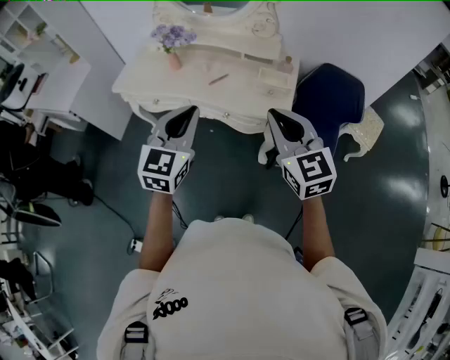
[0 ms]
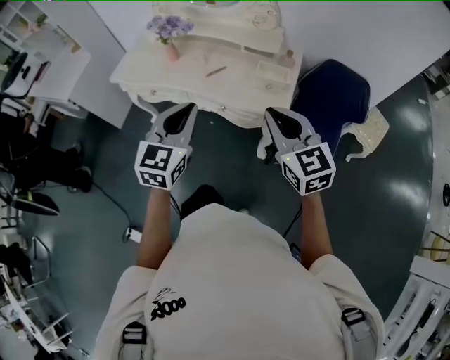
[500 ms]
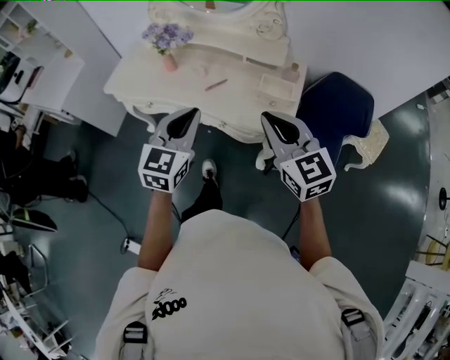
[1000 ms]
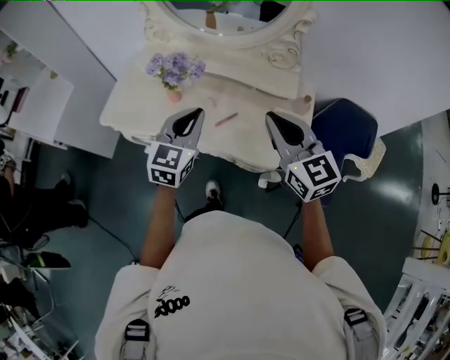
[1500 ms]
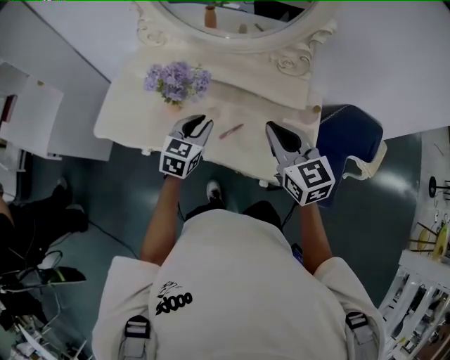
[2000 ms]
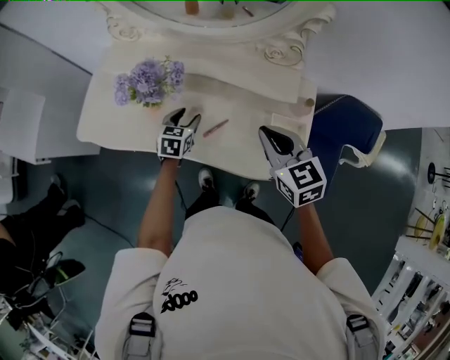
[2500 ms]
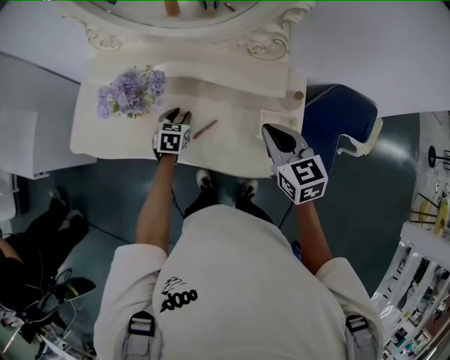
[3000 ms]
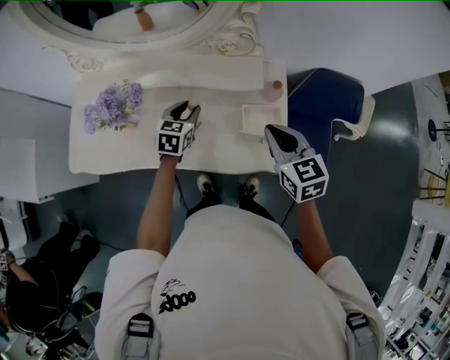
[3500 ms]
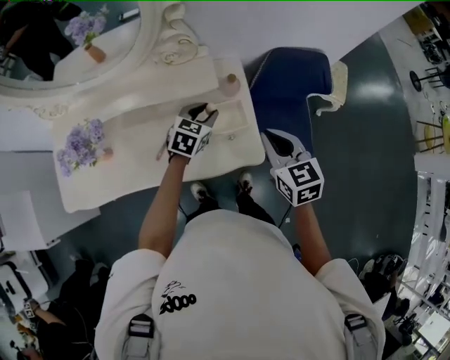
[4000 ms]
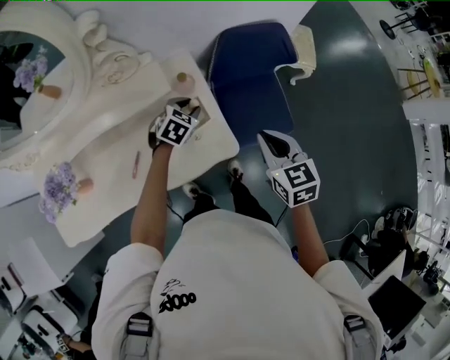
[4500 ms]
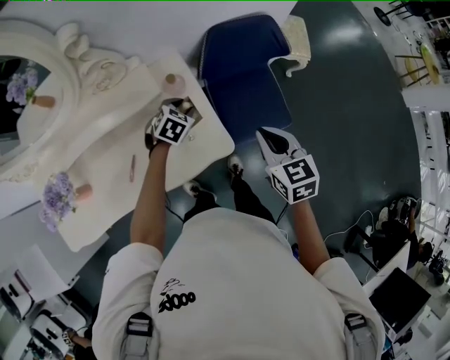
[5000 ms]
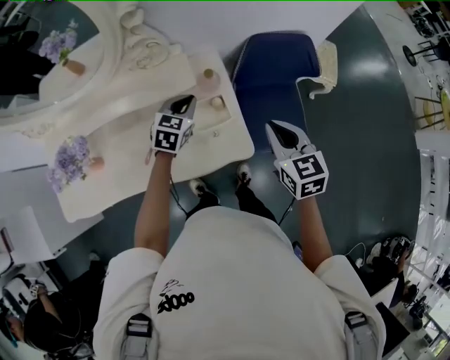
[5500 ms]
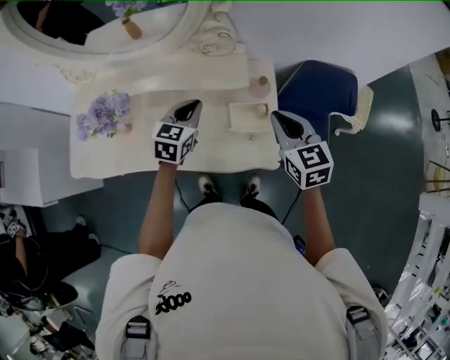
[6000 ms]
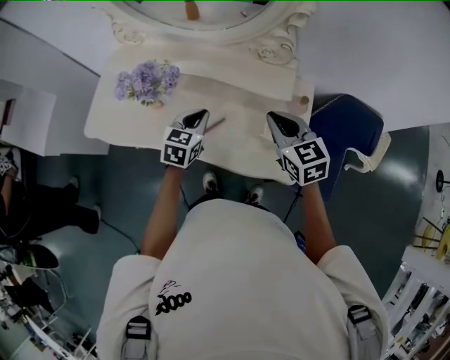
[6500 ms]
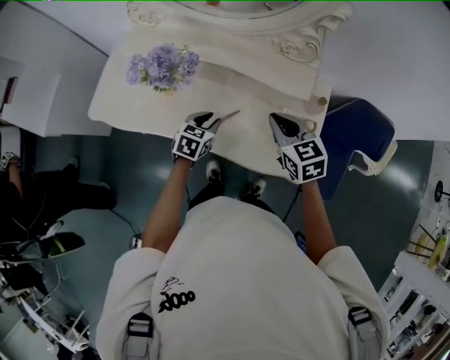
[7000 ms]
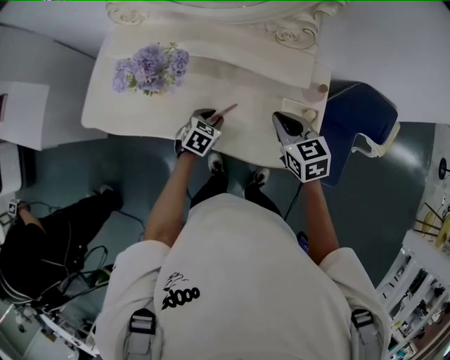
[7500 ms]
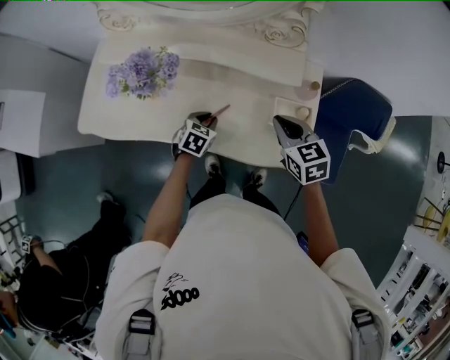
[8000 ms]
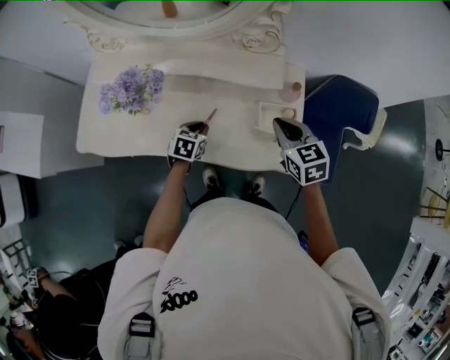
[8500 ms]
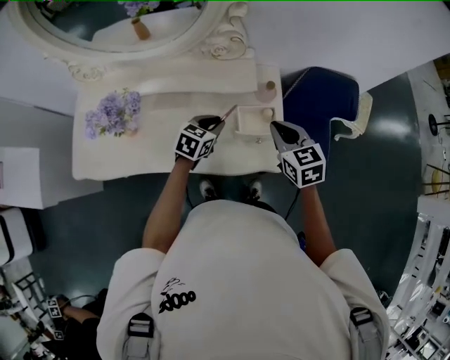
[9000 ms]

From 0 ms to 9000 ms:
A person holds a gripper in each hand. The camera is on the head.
From 0 ms to 2000 ms: The right gripper heads forward, covering approximately 30 cm. The left gripper goes approximately 40 cm forward and downward, rotates about 20 degrees, and opens its fingers.
From 2000 ms to 4500 ms: The right gripper shifts by about 35 cm, and changes its angle by approximately 40 degrees. The left gripper swings up and down, some 15 cm each way, with 2 reversals, swivels approximately 50 degrees, and opens, then closes again.
From 4500 ms to 7000 ms: The right gripper ends up about 30 cm from where it was, and changes its angle by roughly 40 degrees, while the left gripper reaches approximately 10 cm upward, then returns, rolls counterclockwise, seen from behind, by some 40 degrees, and closes, then opens again.
From 7000 ms to 9000 ms: Both grippers move to the right, approximately 15 cm. The left gripper changes its angle by some 20 degrees. The right gripper rotates some 20 degrees.

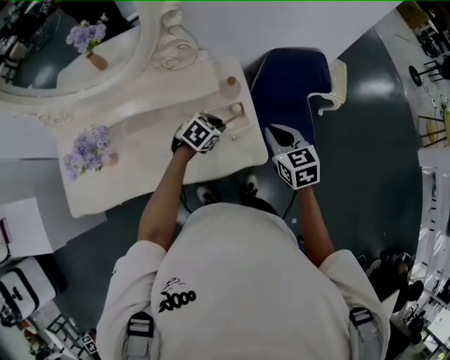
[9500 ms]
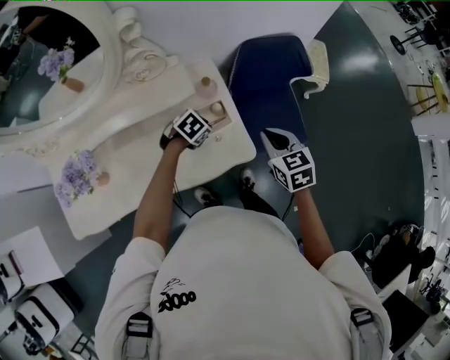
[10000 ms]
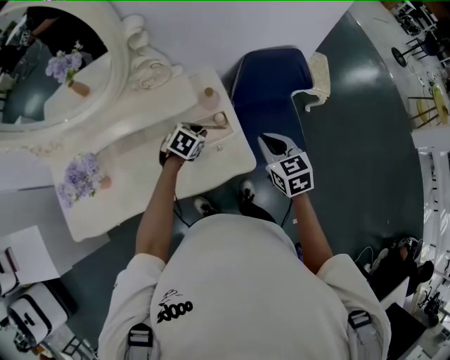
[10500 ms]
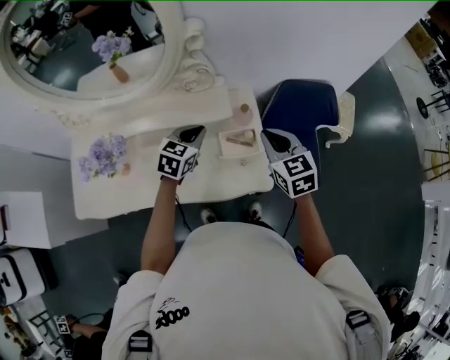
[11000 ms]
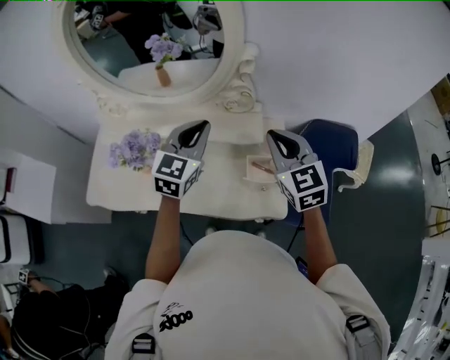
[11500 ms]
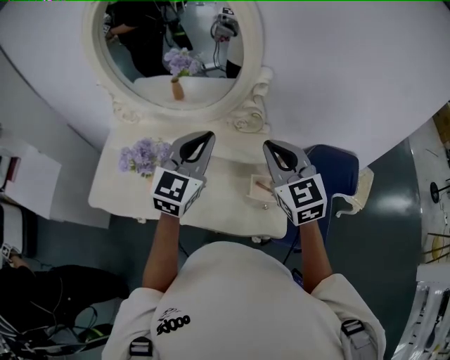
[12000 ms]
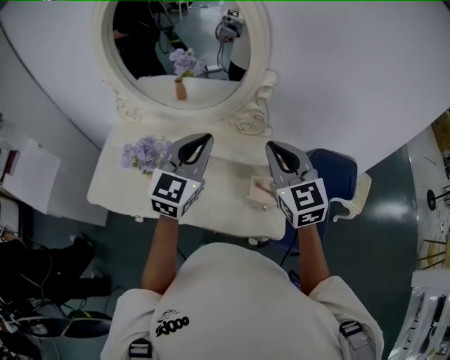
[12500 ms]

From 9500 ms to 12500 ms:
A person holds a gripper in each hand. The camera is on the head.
From 9500 ms to 11000 ms: The right gripper shifts by about 10 cm, while the left gripper moves upward, approximately 10 cm, and changes its angle by approximately 30 degrees.
From 11000 ms to 12500 ms: The two grippers go some 25 cm upward and to the left. The left gripper tilts its fingers some 30 degrees upward, while the right gripper swivels about 30 degrees.

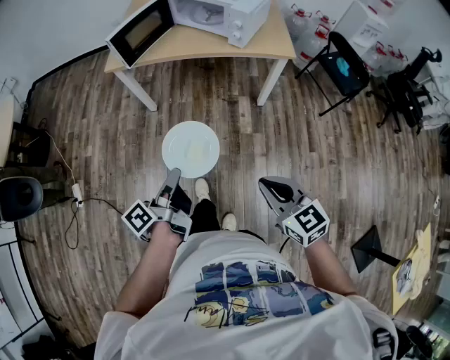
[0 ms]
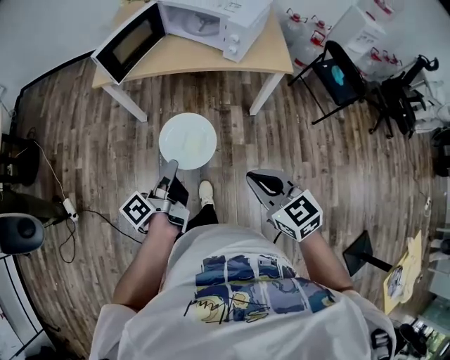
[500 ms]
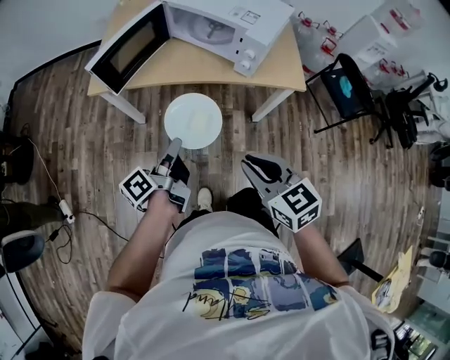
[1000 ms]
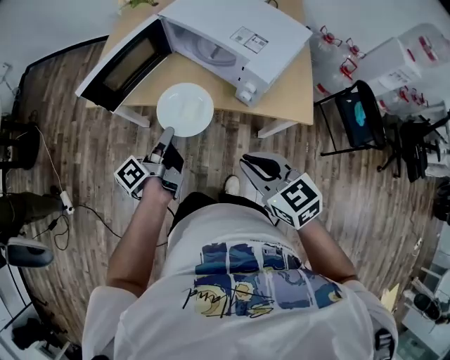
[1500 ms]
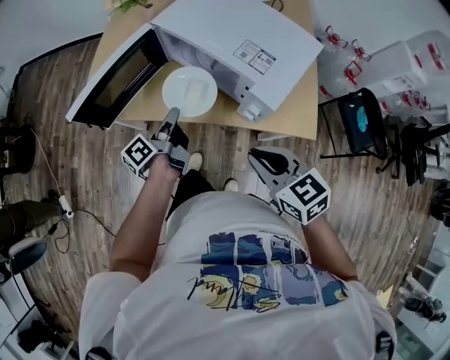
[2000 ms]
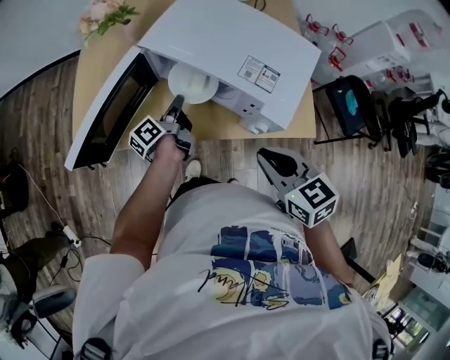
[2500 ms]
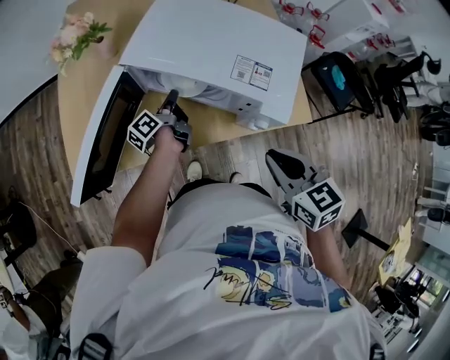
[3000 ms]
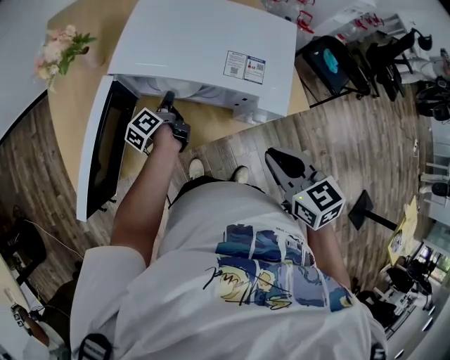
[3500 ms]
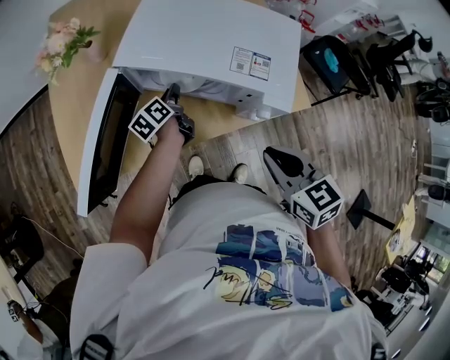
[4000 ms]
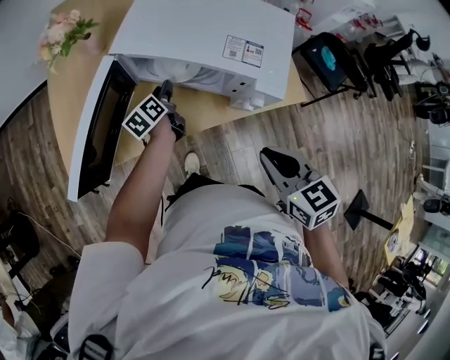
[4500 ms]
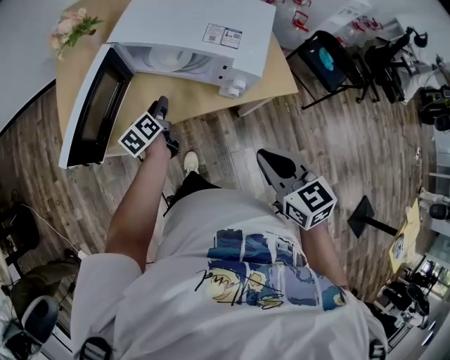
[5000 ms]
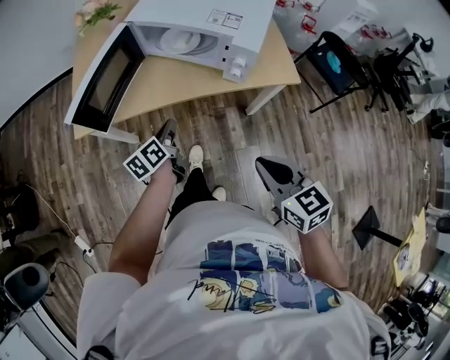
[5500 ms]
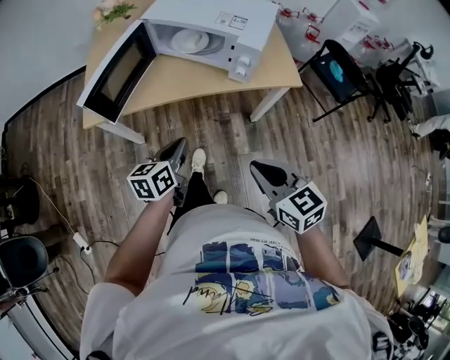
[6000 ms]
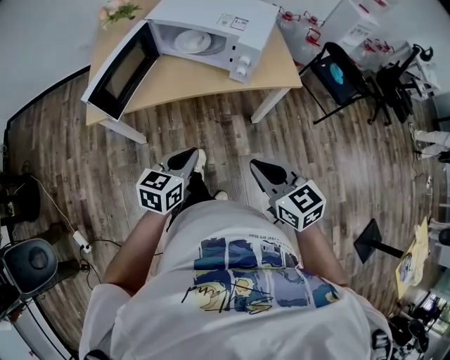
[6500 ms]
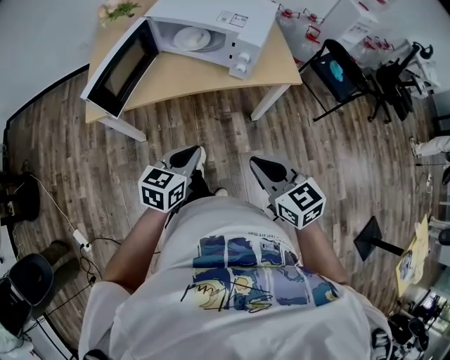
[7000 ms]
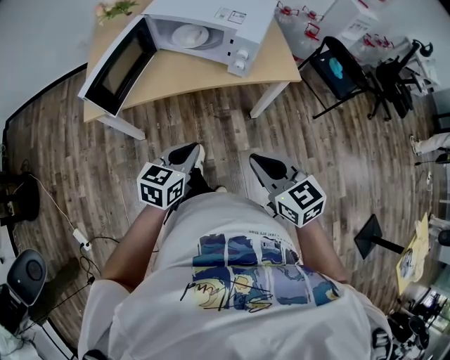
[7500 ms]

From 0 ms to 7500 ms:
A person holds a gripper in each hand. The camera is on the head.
From 0 ms to 2000 ms: Both grippers are carried forward, about 50 cm.
From 2000 ms to 4000 ms: The left gripper changes place by roughly 20 cm, and rotates approximately 30 degrees. Meanwhile the right gripper shifts by approximately 5 cm, and changes its angle by approximately 30 degrees.
From 4000 ms to 5500 ms: Both grippers move backward, roughly 25 cm. The left gripper opens, then closes again.
From 5500 ms to 7500 ms: The right gripper shifts about 5 cm backward; the left gripper heads backward, upward and to the right, covering roughly 20 cm, and rotates around the line of its fingers by roughly 40 degrees, clockwise from behind.

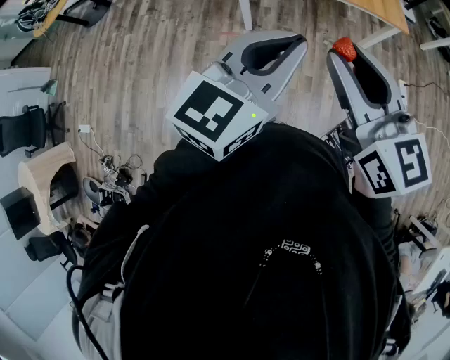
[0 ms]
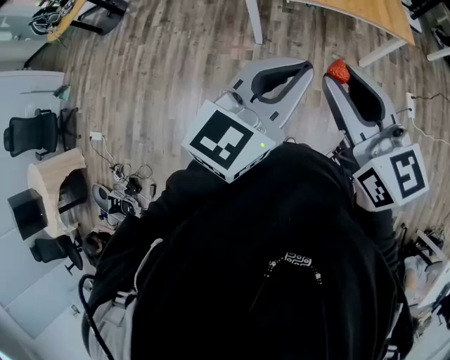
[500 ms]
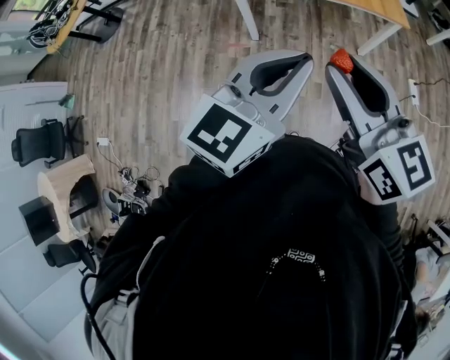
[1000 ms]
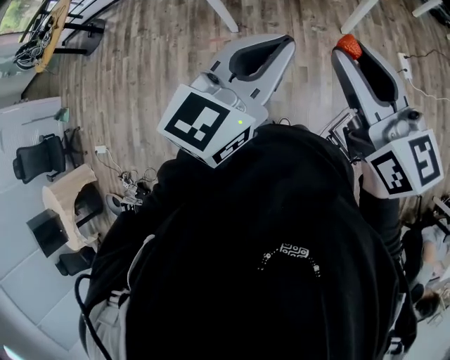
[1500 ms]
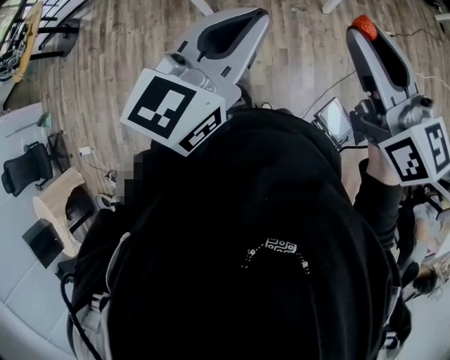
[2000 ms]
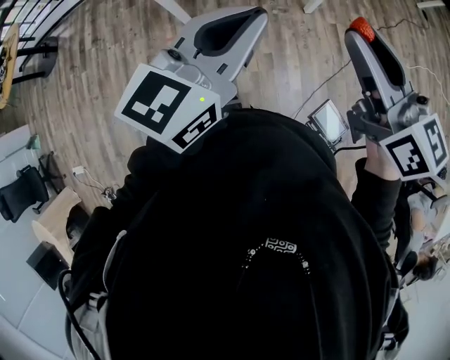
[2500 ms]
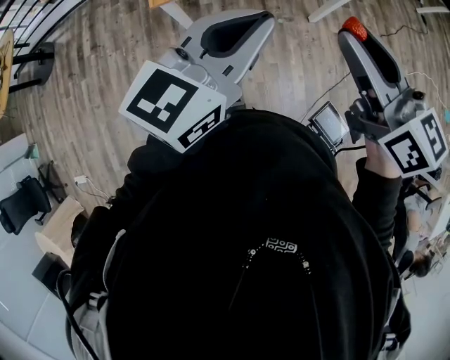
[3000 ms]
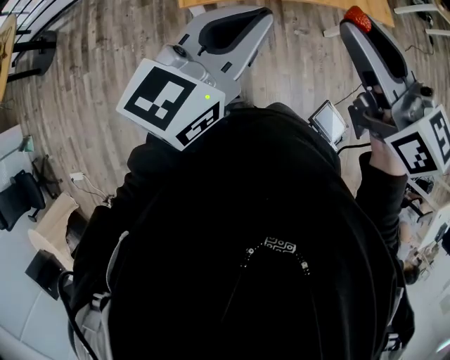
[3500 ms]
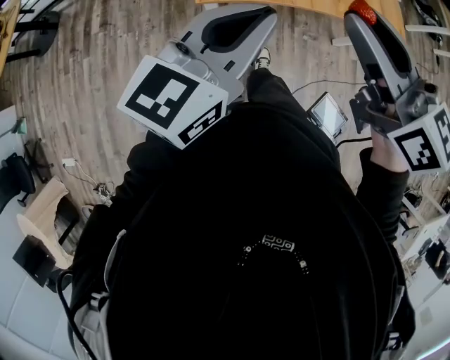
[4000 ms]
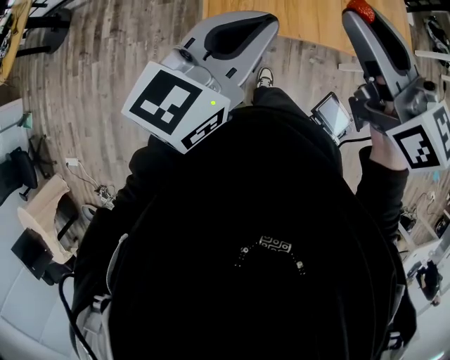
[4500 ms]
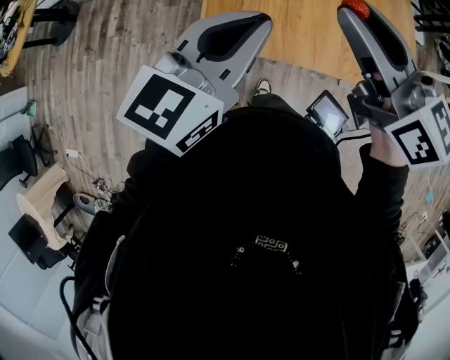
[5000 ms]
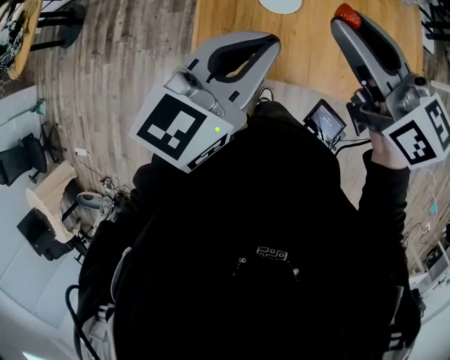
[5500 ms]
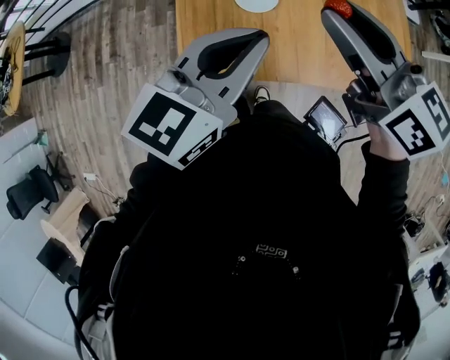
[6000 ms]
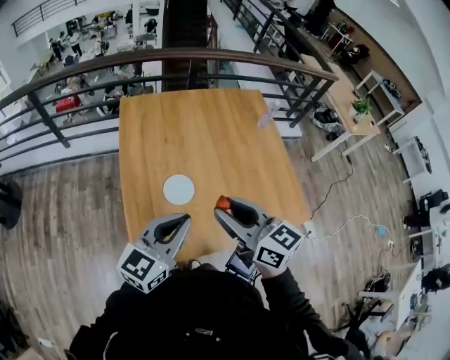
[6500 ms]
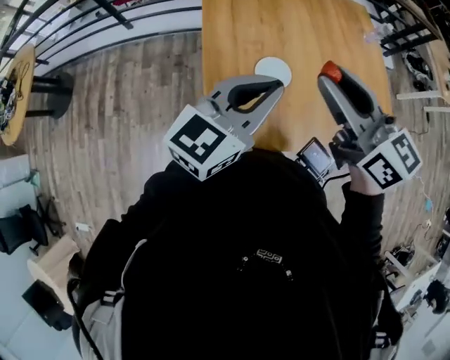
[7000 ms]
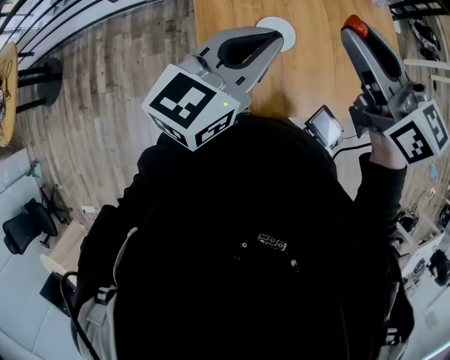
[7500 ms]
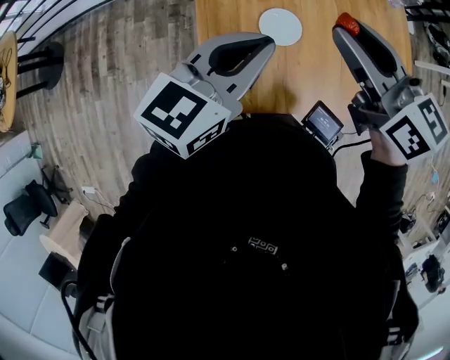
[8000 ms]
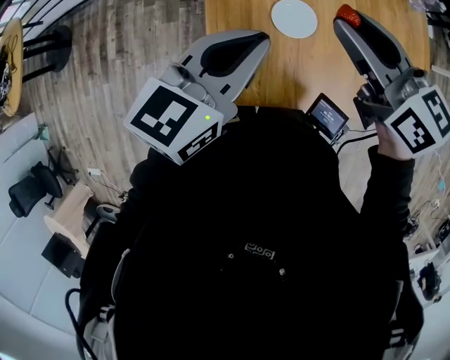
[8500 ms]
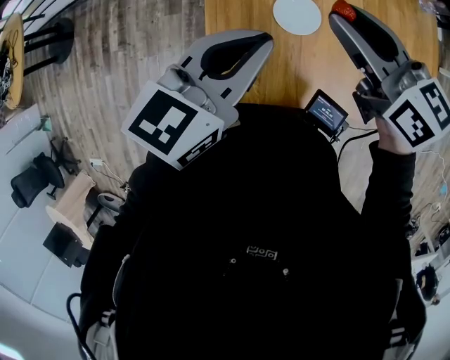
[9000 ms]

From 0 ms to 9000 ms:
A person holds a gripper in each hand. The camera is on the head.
From 0 ms to 2000 ms: The left gripper shifts approximately 10 cm to the right. Meanwhile the right gripper shifts about 20 cm to the right.
From 2000 ms to 4500 ms: The two grippers travel together, forward and to the left, approximately 50 cm.
From 4500 ms to 7000 ms: The left gripper moves forward and backward over about 25 cm, changing direction 2 times, while the right gripper moves forward and backward over roughly 25 cm, changing direction 2 times.
From 7000 ms to 9000 ms: The left gripper goes about 15 cm downward, to the left and forward. Meanwhile the right gripper shifts some 20 cm downward and forward.
